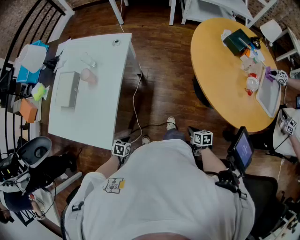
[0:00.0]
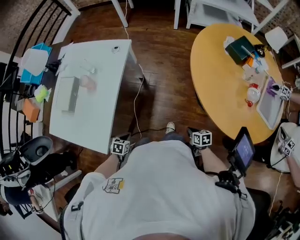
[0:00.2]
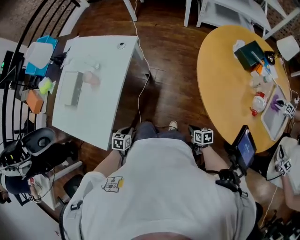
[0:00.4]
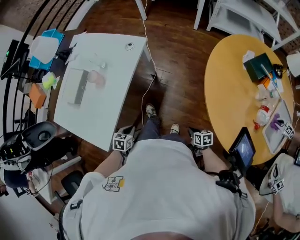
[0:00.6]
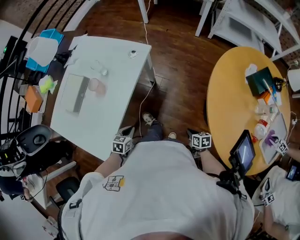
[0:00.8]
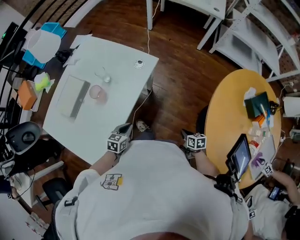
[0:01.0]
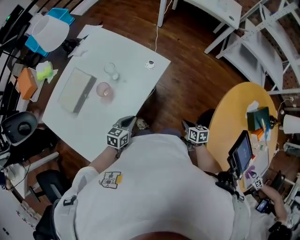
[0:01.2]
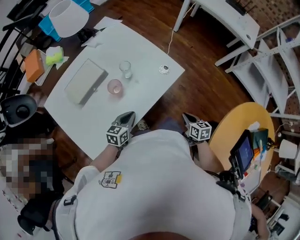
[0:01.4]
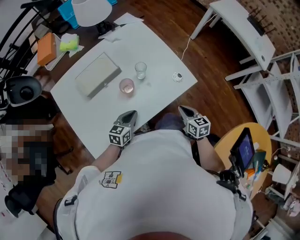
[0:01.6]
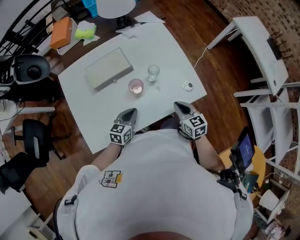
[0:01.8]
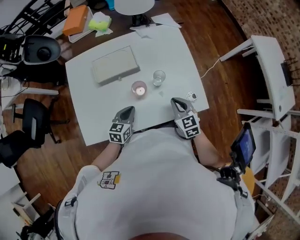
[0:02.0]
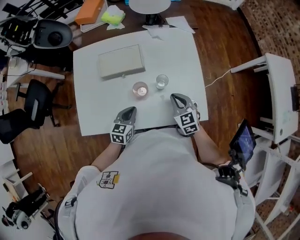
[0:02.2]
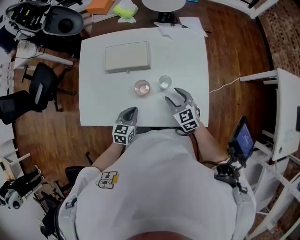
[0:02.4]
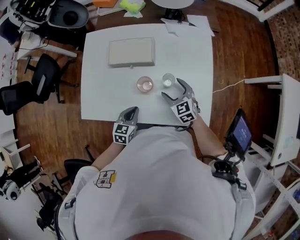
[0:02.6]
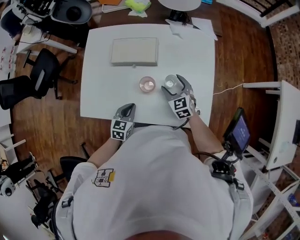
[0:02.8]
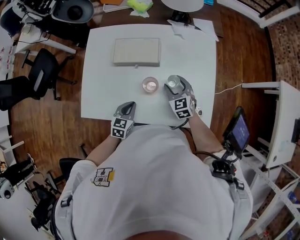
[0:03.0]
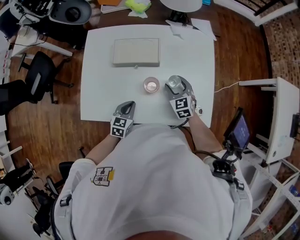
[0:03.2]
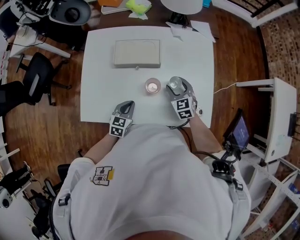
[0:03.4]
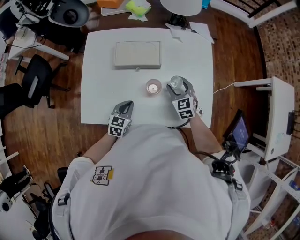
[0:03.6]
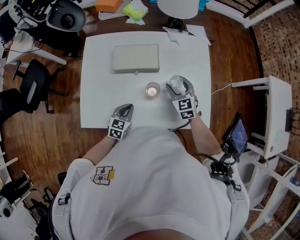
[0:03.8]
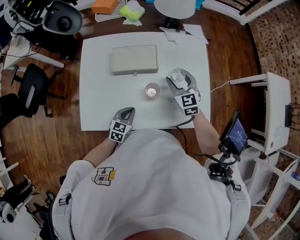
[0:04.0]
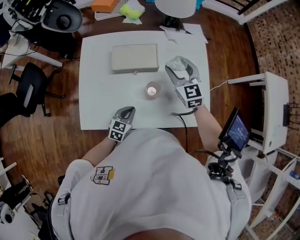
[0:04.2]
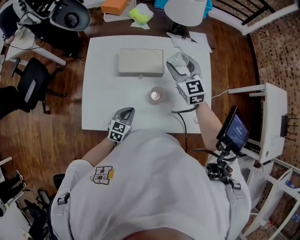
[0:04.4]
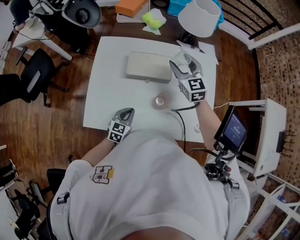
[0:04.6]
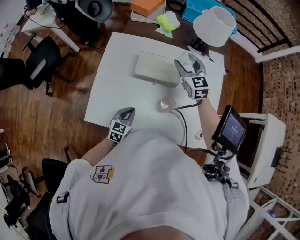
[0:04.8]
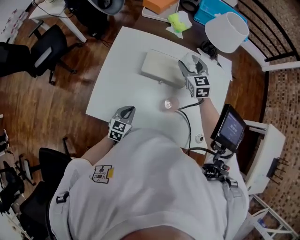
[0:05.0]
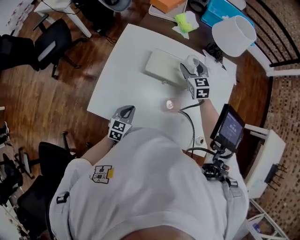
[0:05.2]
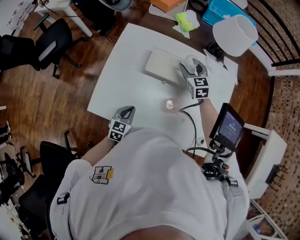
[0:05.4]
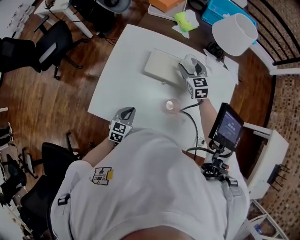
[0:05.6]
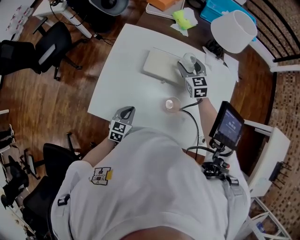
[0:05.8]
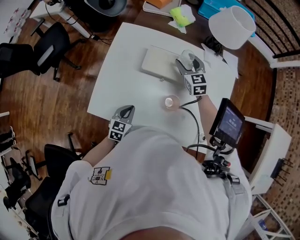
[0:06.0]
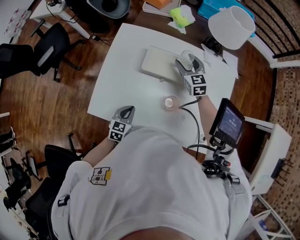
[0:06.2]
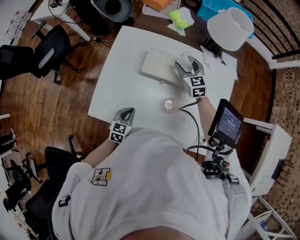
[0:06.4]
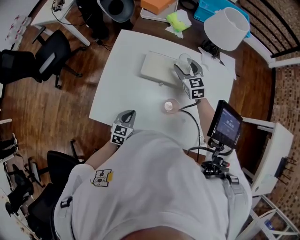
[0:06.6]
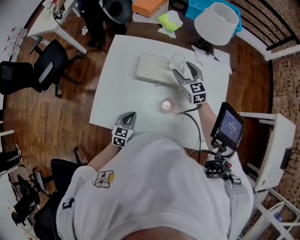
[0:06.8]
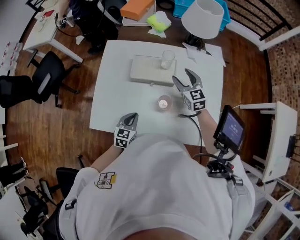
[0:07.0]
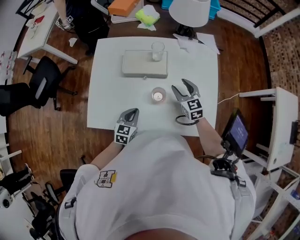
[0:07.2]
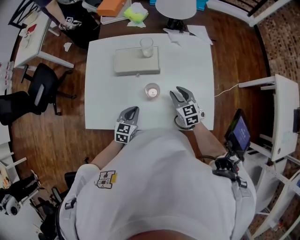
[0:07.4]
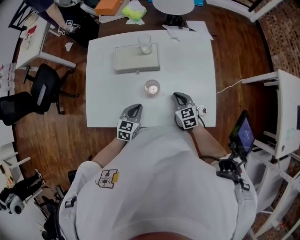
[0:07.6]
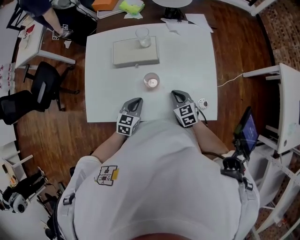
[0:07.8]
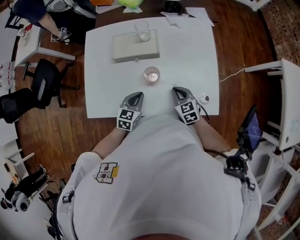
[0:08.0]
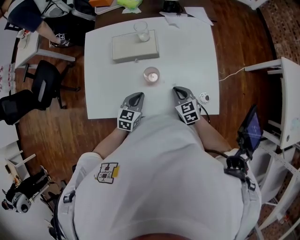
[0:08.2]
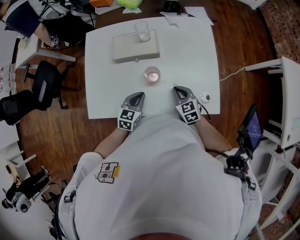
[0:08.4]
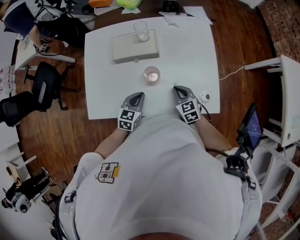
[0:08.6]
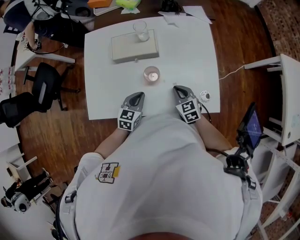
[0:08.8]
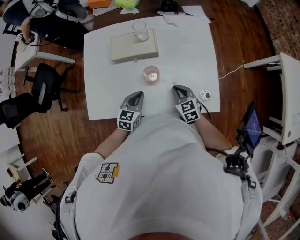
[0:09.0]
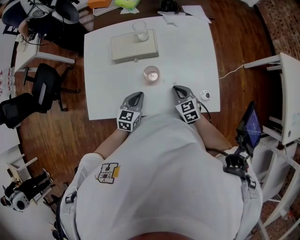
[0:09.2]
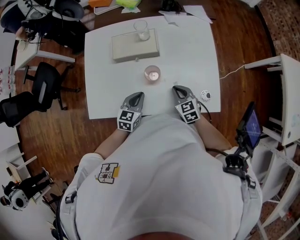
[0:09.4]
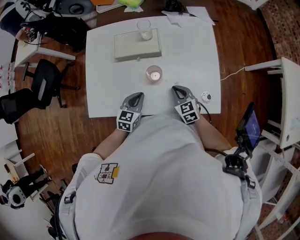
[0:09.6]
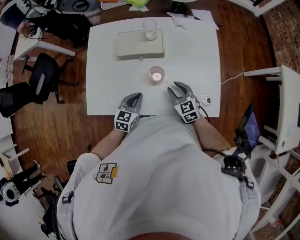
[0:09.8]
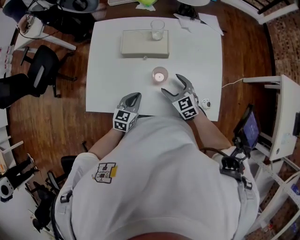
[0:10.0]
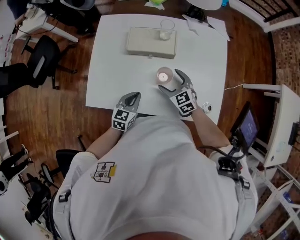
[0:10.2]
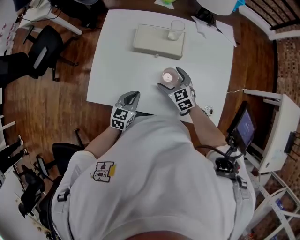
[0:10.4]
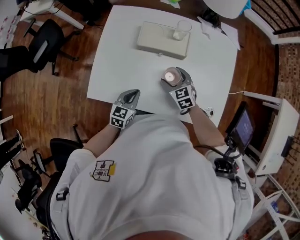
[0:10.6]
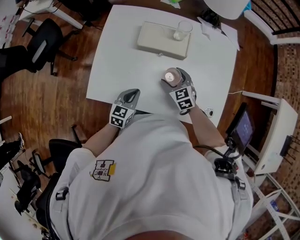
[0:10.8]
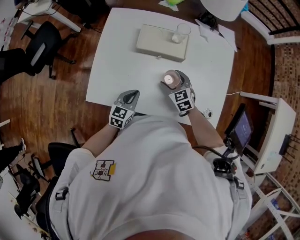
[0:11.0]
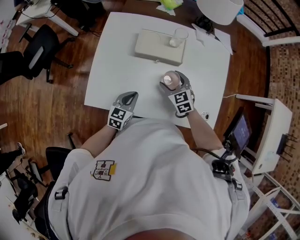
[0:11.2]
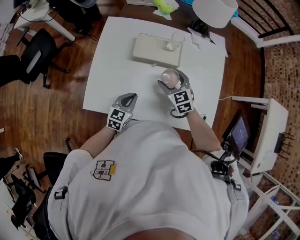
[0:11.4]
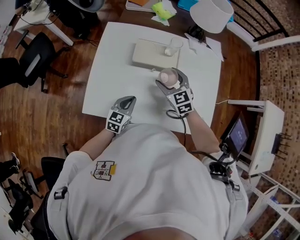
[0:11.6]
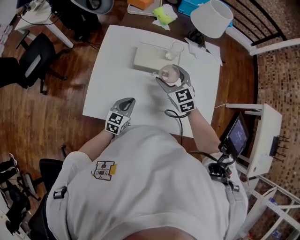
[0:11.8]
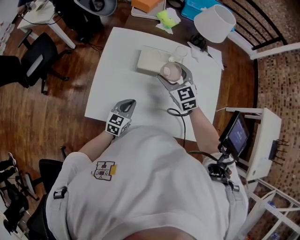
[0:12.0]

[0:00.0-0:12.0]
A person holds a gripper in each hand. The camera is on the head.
0.0 to 1.6 s: The right gripper shifts by approximately 60 cm, and twists some 50 degrees counterclockwise, seen from behind, while the left gripper ends up some 40 cm from where it was, and tilts its fingers approximately 40 degrees upward.
1.6 to 3.0 s: The left gripper changes place by some 5 cm, and changes its angle by roughly 40 degrees. Meanwhile the right gripper changes place by approximately 30 cm, twists approximately 50 degrees counterclockwise, seen from behind, and opens up.
3.0 to 4.4 s: The right gripper is displaced upward and forward by approximately 20 cm.
4.4 to 6.0 s: The right gripper goes approximately 15 cm downward, forward and to the left; the left gripper moves to the left, some 5 cm.
6.0 to 7.6 s: The left gripper heads to the right, covering some 10 cm. Meanwhile the right gripper shifts roughly 30 cm backward and to the right, and closes its fingers.
7.6 to 9.0 s: The grippers stay close to where they were, moving slightly.
9.0 to 10.4 s: The left gripper is displaced to the left by roughly 5 cm. The right gripper heads to the left and forward, covering approximately 15 cm, and opens.
10.4 to 12.0 s: The right gripper shifts about 20 cm upward and forward; the left gripper shifts by approximately 5 cm.

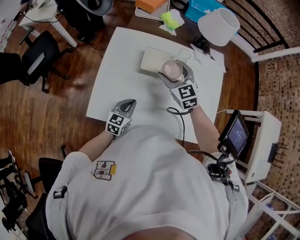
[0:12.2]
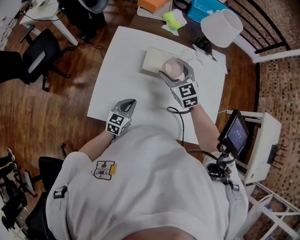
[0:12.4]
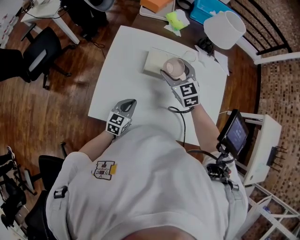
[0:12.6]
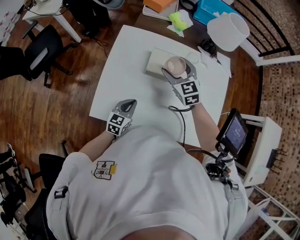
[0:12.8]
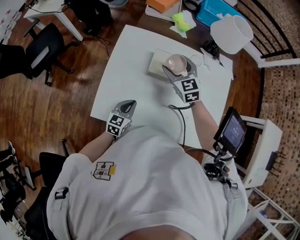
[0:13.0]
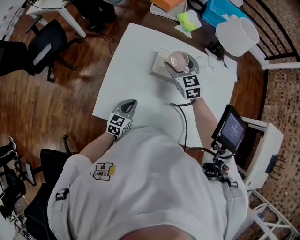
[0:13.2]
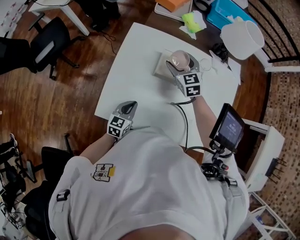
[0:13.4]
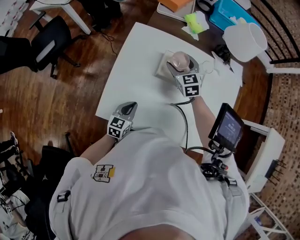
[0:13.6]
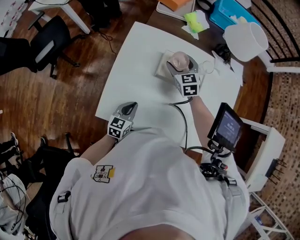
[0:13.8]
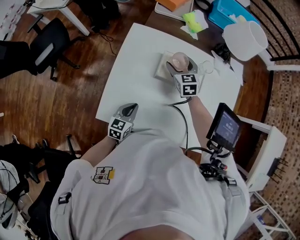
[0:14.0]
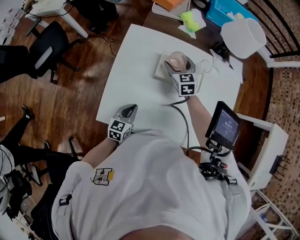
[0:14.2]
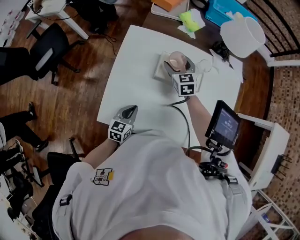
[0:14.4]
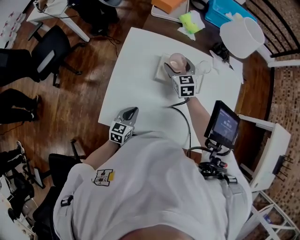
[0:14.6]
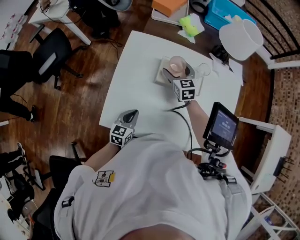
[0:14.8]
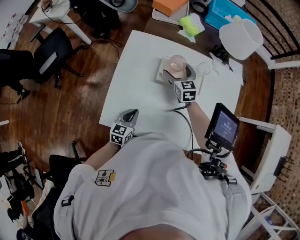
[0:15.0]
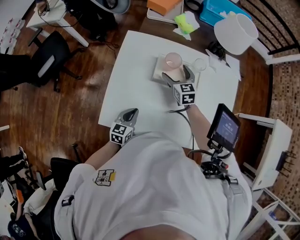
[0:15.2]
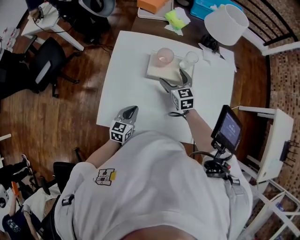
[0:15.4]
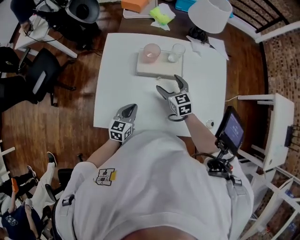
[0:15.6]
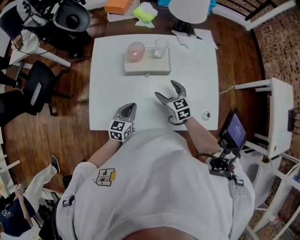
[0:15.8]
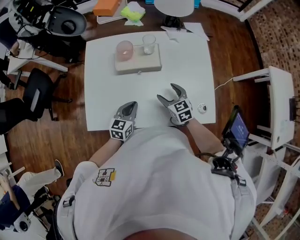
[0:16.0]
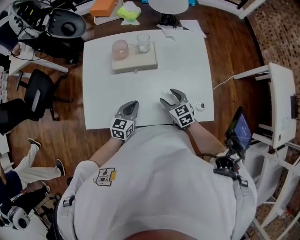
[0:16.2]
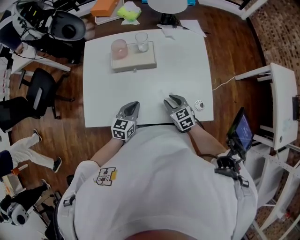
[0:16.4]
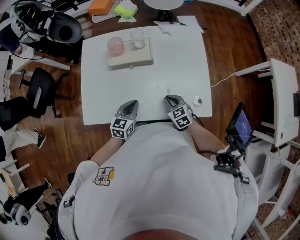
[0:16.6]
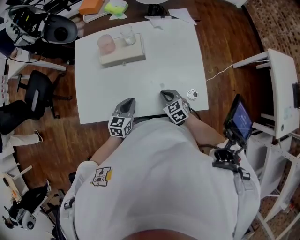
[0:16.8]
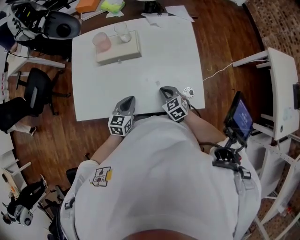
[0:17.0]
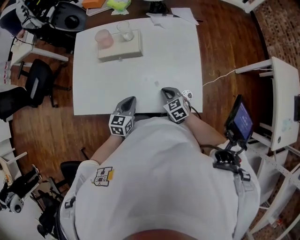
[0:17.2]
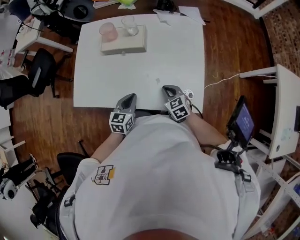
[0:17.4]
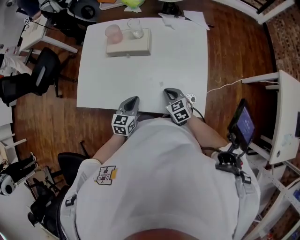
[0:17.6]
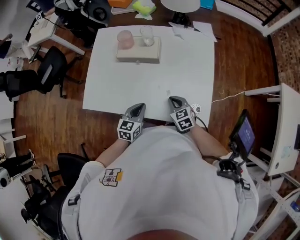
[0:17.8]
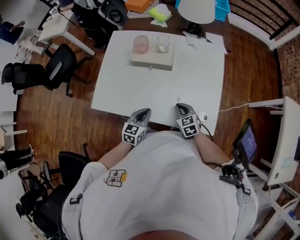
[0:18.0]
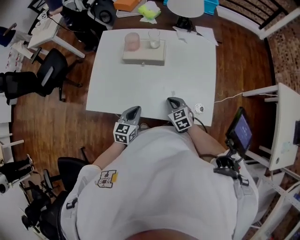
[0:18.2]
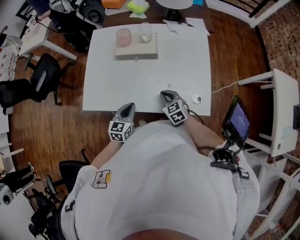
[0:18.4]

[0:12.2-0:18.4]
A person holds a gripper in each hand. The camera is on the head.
12.2 to 13.8 s: The right gripper is displaced forward and downward by approximately 15 cm. The left gripper goes roughly 5 cm to the left.
13.8 to 15.4 s: The right gripper travels backward by some 10 cm.
15.4 to 16.8 s: The right gripper goes some 30 cm backward and to the right, and closes up. The left gripper heads to the right, covering roughly 15 cm.
16.8 to 18.4 s: The left gripper travels backward by approximately 5 cm.

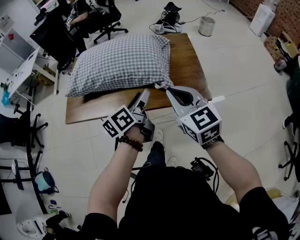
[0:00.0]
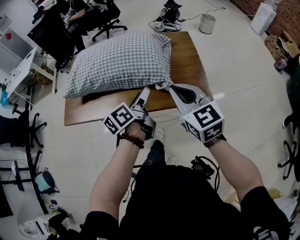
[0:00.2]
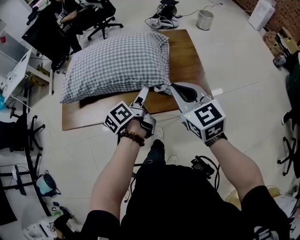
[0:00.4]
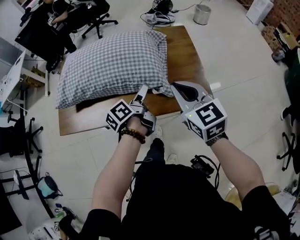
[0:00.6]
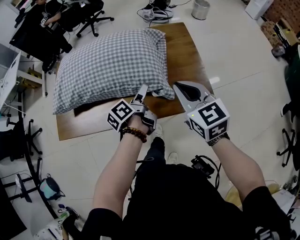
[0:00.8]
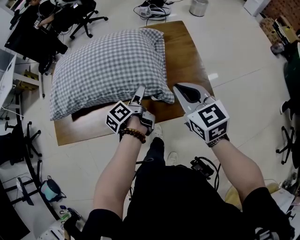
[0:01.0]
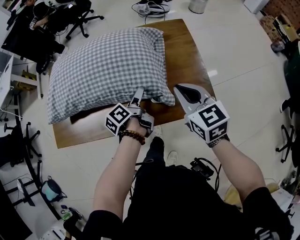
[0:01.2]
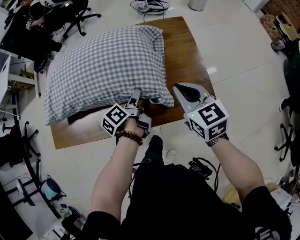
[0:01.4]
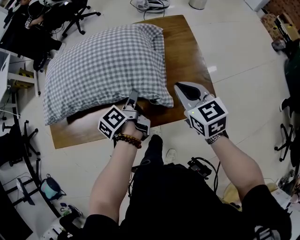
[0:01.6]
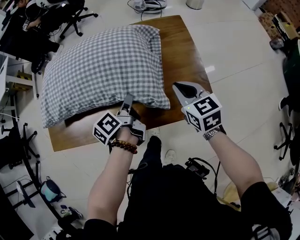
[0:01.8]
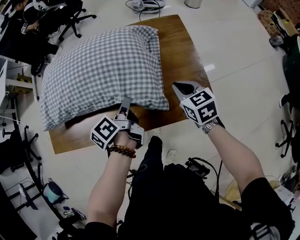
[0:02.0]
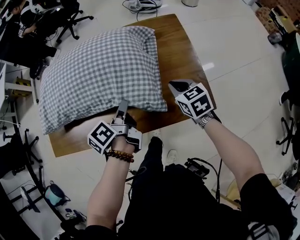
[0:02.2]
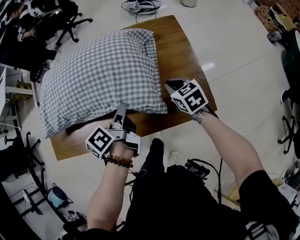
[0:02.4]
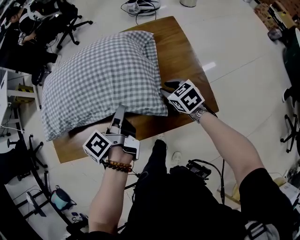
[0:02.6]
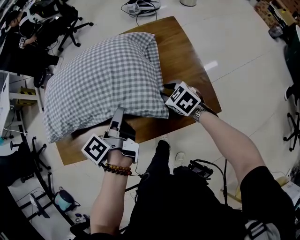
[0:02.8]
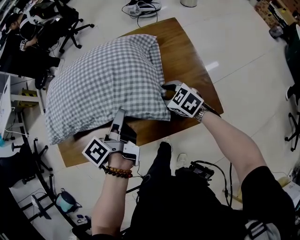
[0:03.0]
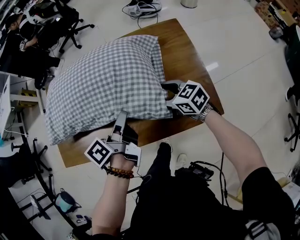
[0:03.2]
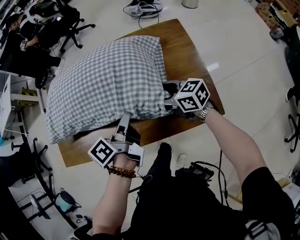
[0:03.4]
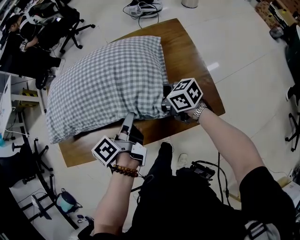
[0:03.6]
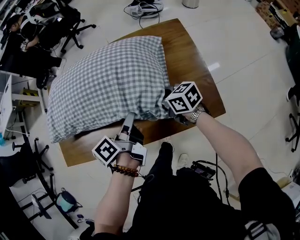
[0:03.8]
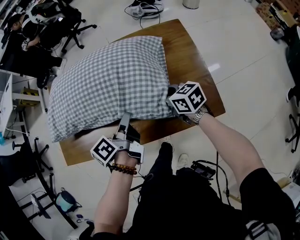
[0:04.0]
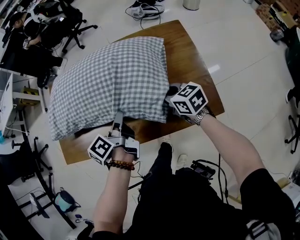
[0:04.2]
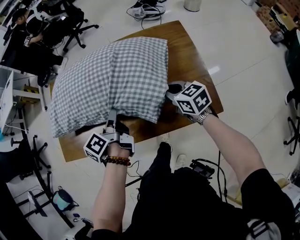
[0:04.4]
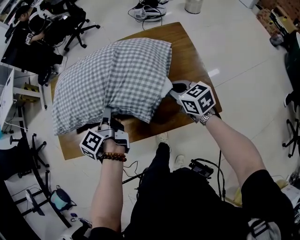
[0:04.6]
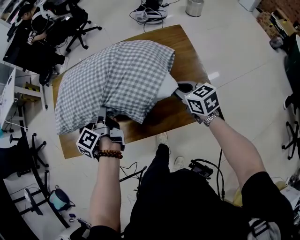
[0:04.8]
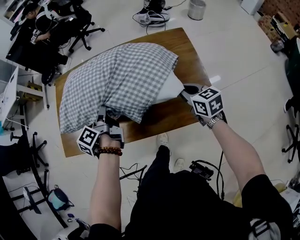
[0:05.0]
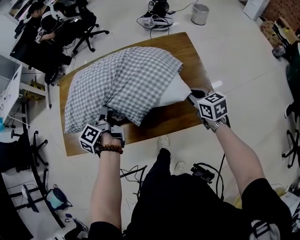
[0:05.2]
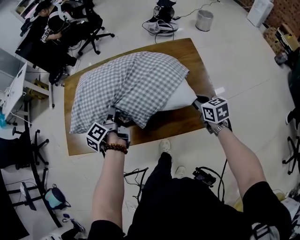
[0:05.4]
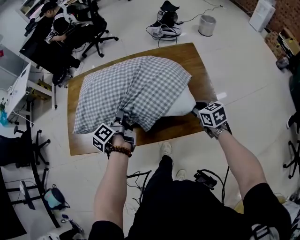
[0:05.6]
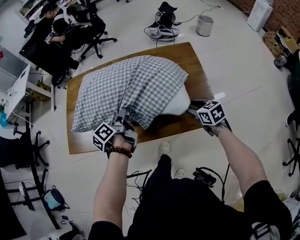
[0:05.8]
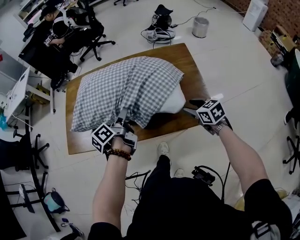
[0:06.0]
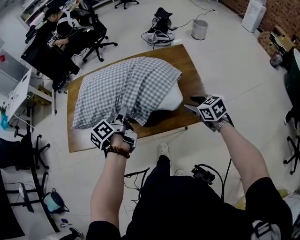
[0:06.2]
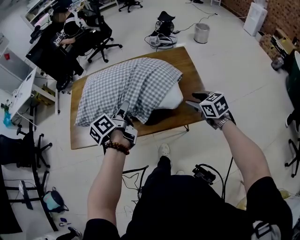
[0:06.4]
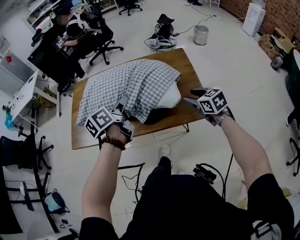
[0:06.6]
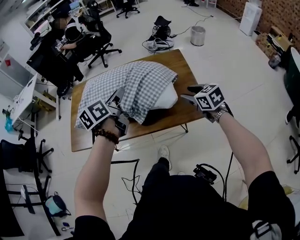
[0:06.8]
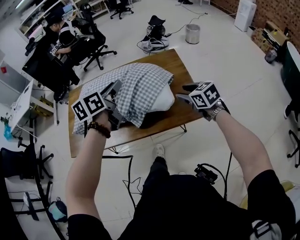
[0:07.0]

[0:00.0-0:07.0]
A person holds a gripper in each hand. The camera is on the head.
0.0 to 1.4 s: The left gripper shifts about 35 cm forward and downward, swivels roughly 30 degrees, and opens and closes again. Meanwhile the right gripper shifts roughly 35 cm forward, and rotates about 20 degrees.
1.4 to 2.8 s: The left gripper moves upward, about 10 cm, and closes its fingers, while the right gripper goes roughly 20 cm downward, swivels roughly 30 degrees, and opens up.
2.8 to 4.2 s: The right gripper is displaced upward by approximately 5 cm, rotates about 20 degrees, and closes up.
4.2 to 5.6 s: The right gripper is displaced backward by roughly 15 cm; the left gripper goes about 10 cm to the left and backward.
5.6 to 7.0 s: The left gripper moves upward, to the right and backward, some 30 cm, rolls clockwise, seen from behind, by roughly 40 degrees, and opens its fingers. Meanwhile the right gripper is displaced upward and backward by approximately 15 cm, and opens.
